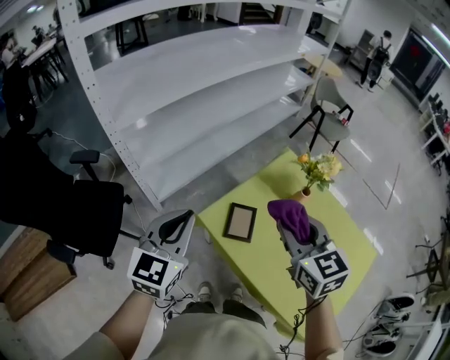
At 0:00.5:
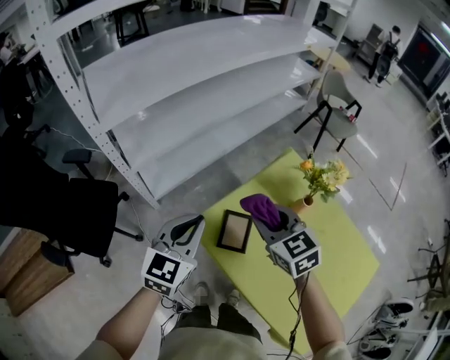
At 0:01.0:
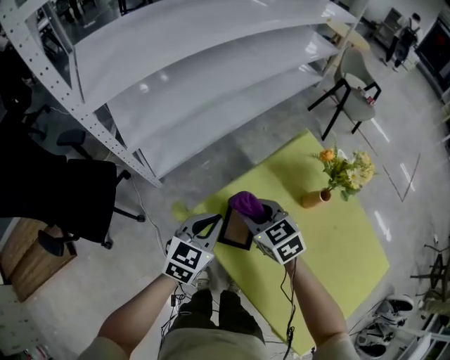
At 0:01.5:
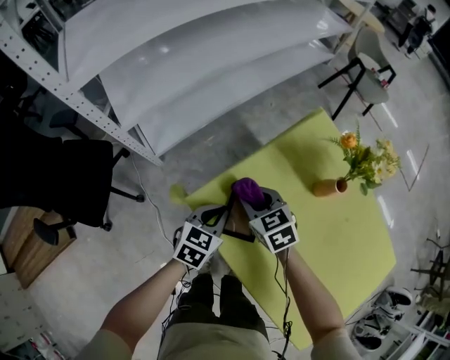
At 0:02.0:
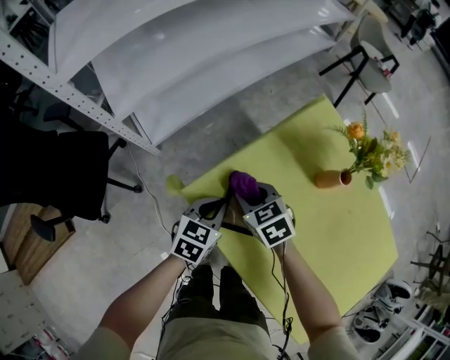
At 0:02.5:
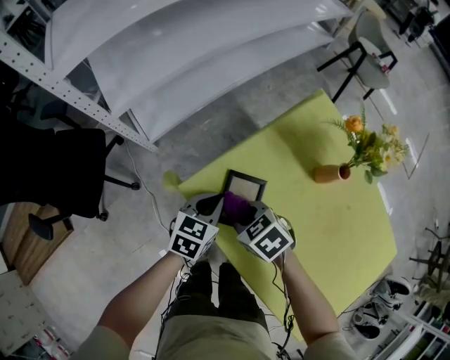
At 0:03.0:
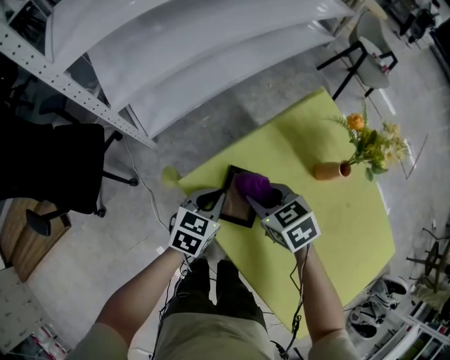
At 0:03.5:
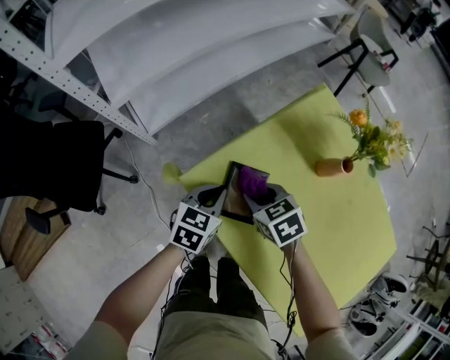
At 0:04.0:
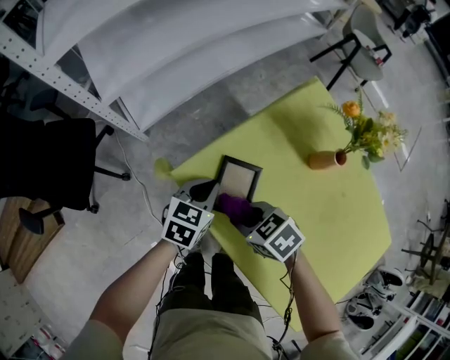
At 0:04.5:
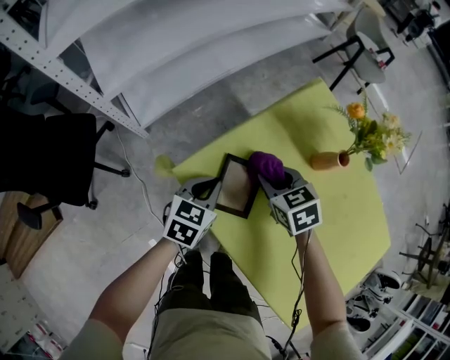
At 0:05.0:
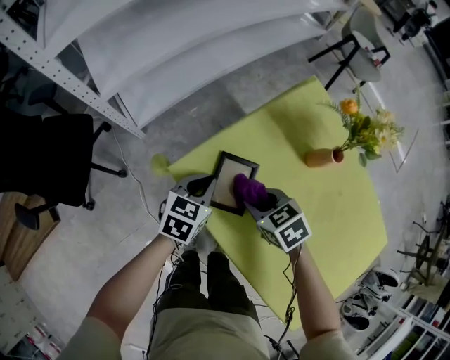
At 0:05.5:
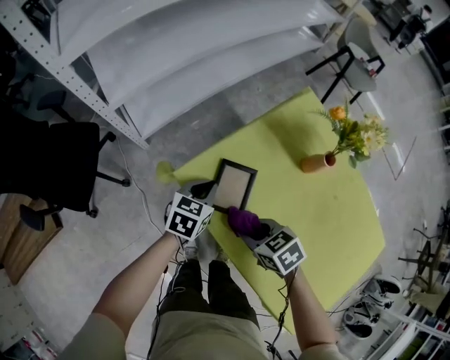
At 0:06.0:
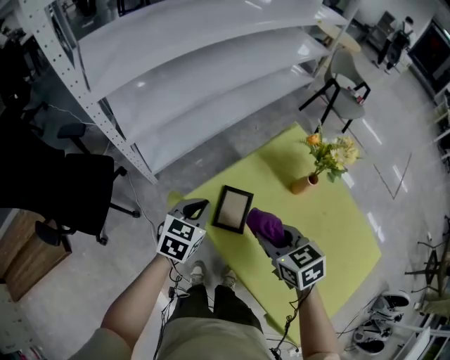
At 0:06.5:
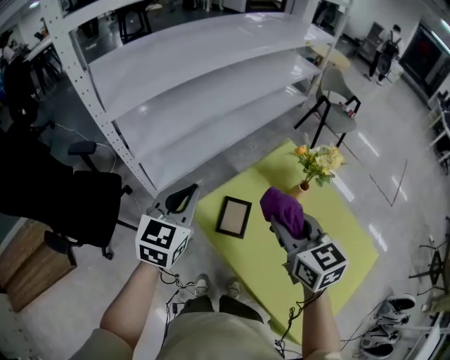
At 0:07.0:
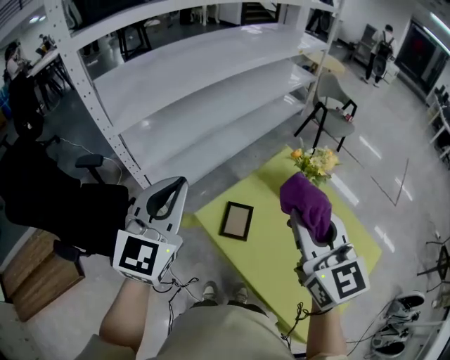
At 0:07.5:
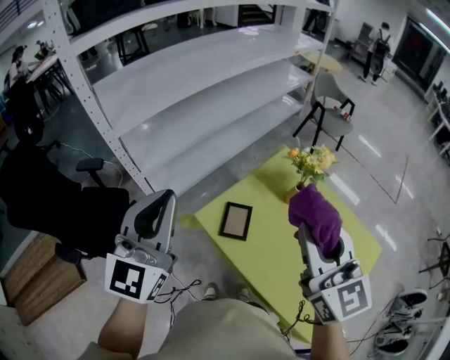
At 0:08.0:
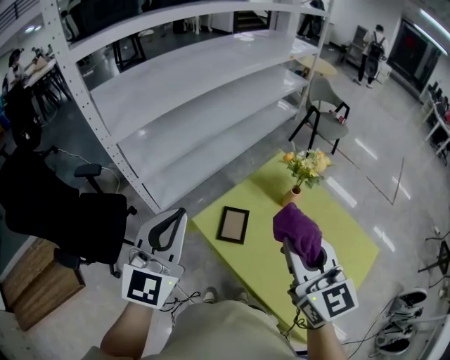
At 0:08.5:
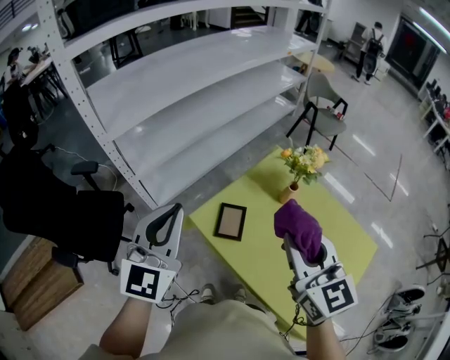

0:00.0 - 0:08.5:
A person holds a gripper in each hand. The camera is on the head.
0:00.0 - 0:02.0: The two grippers go some 35 cm downward. The right gripper swivels about 30 degrees. The left gripper rotates approximately 30 degrees.
0:02.0 - 0:04.0: The right gripper goes forward and backward, about 10 cm each way, reversing 2 times, and rotates approximately 20 degrees.
0:04.0 - 0:06.5: Both grippers move upward, about 30 cm. The right gripper tilts its fingers some 30 degrees upward, while the left gripper changes its angle by some 30 degrees.
0:06.5 - 0:08.5: The two grippers go approximately 15 cm upward and backward.

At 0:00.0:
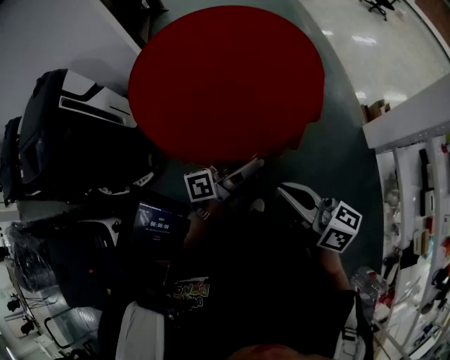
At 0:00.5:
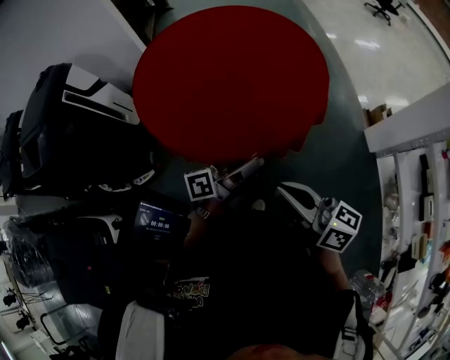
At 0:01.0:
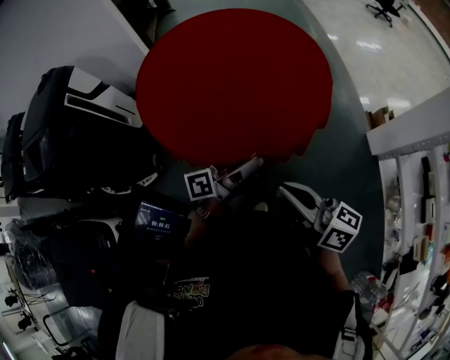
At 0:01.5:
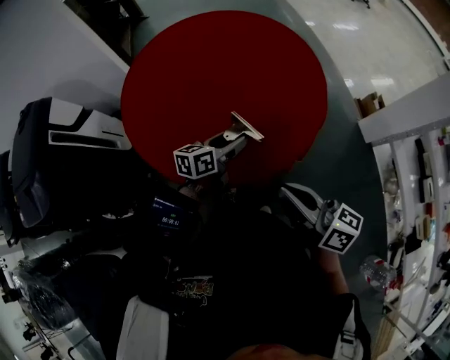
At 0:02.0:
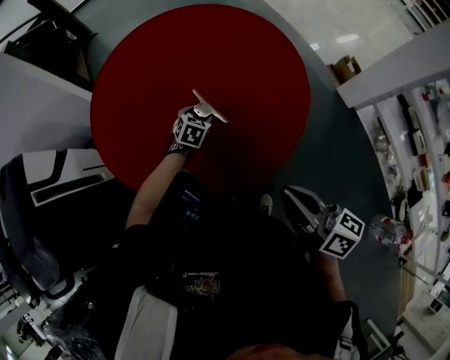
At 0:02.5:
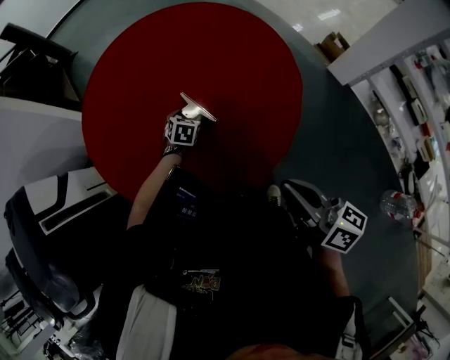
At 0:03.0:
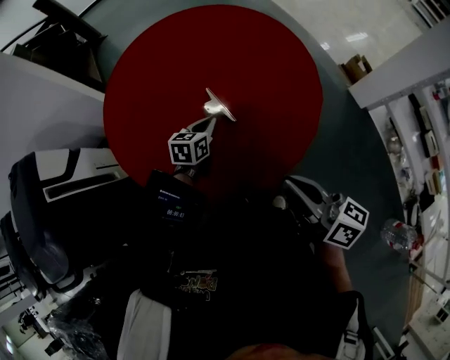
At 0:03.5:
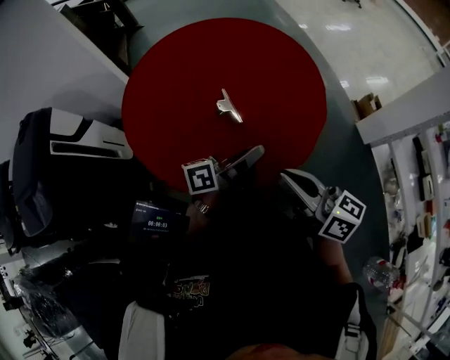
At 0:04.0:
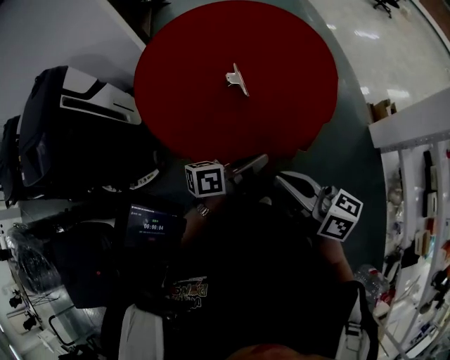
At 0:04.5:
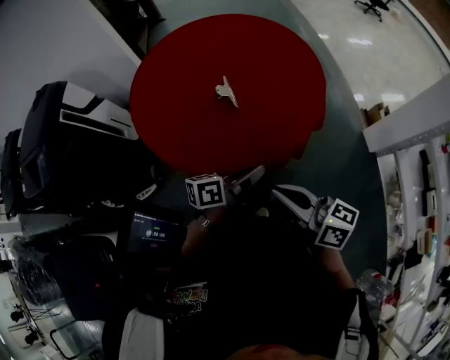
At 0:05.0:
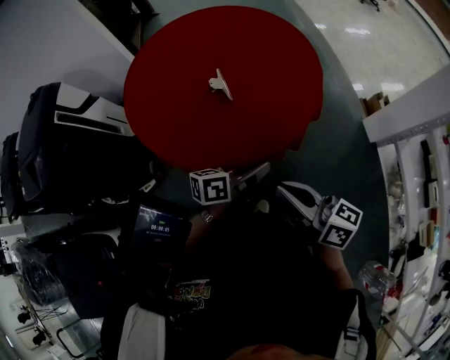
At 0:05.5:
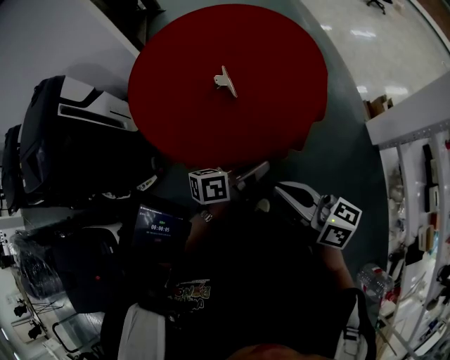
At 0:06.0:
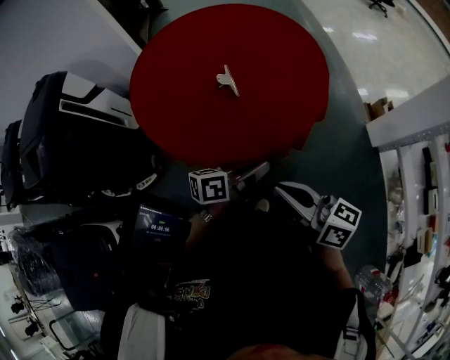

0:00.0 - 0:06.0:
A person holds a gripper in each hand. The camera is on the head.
0:00.0 - 0:02.0: The right gripper shifts roughly 15 cm forward and to the left, and swivels approximately 30 degrees. The left gripper goes roughly 40 cm forward, downward and to the left, and angles its fingers downward, by approximately 60 degrees.
0:02.0 - 0:04.0: The left gripper heads backward, upward and to the right, covering approximately 40 cm, tips its fingers upward by some 50 degrees, and closes, while the right gripper heads backward, covering roughly 5 cm, and rotates about 30 degrees.
0:04.0 - 0:06.0: The grippers move only a little.

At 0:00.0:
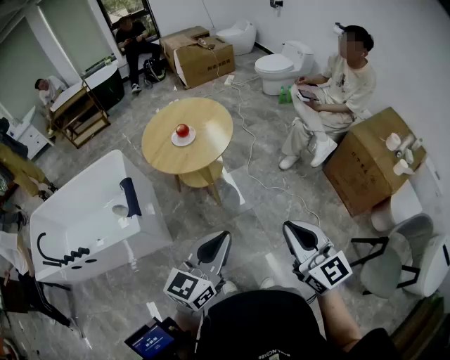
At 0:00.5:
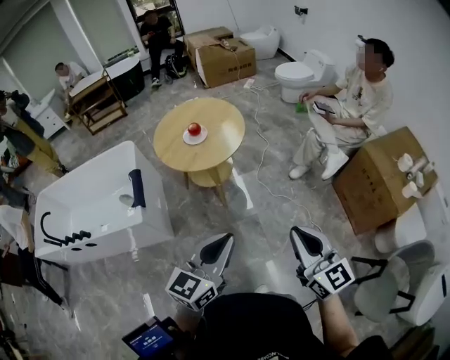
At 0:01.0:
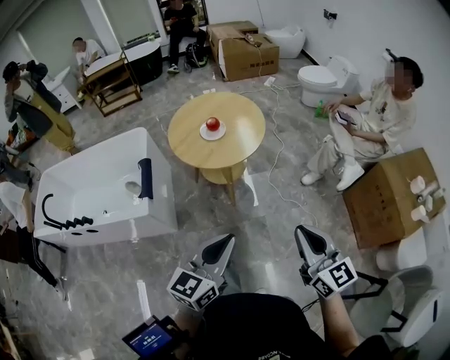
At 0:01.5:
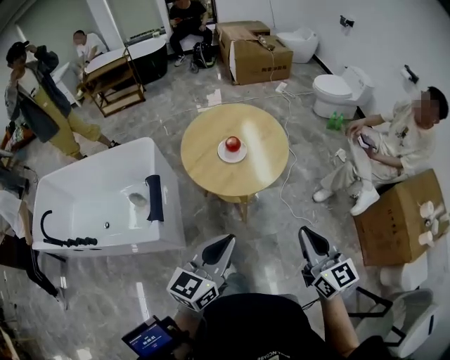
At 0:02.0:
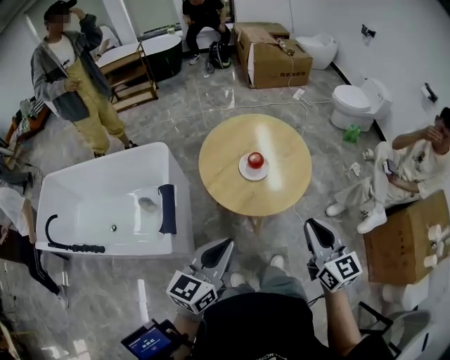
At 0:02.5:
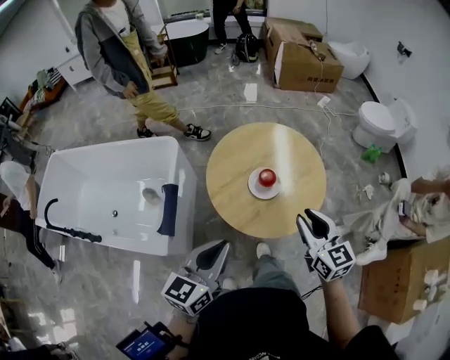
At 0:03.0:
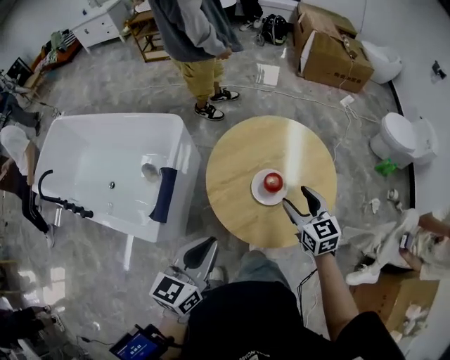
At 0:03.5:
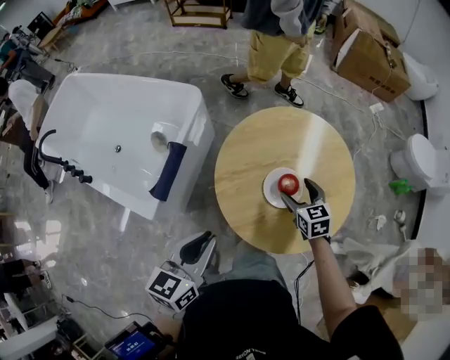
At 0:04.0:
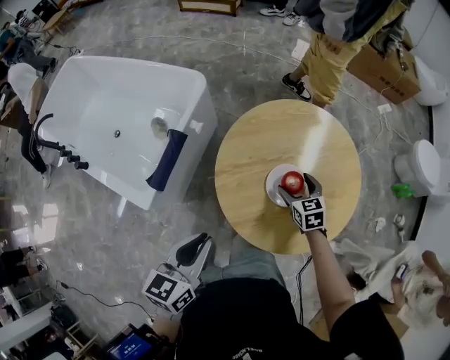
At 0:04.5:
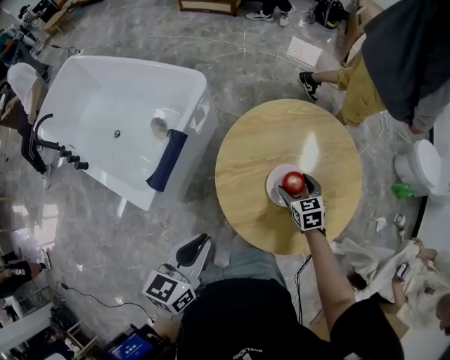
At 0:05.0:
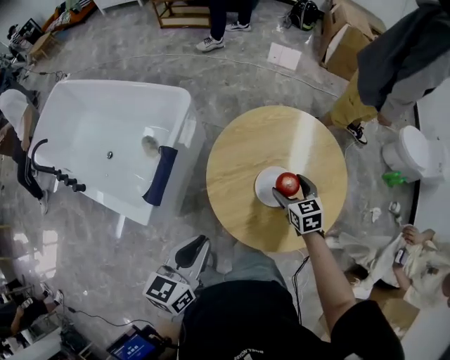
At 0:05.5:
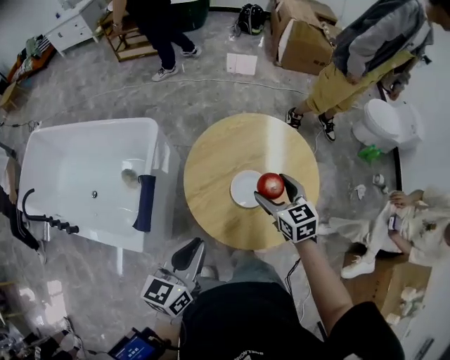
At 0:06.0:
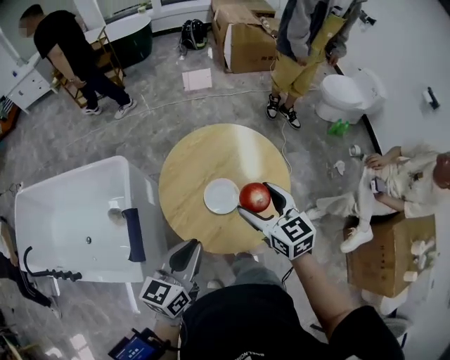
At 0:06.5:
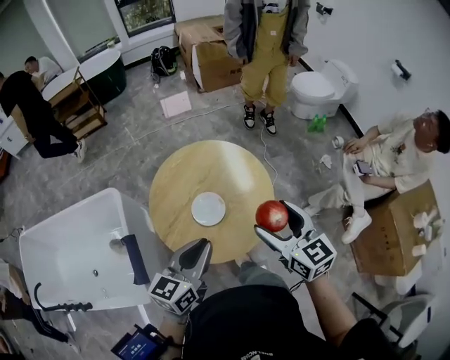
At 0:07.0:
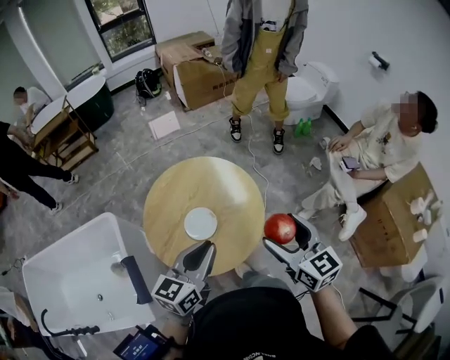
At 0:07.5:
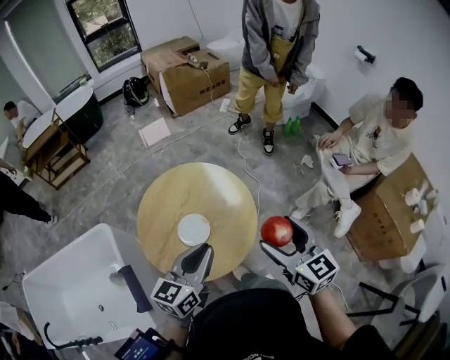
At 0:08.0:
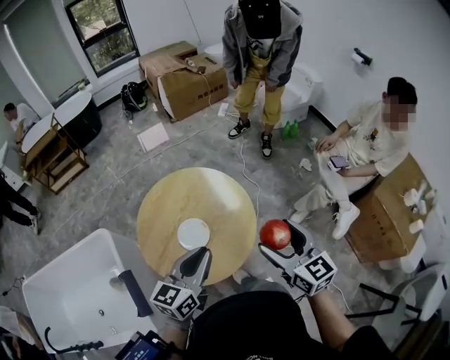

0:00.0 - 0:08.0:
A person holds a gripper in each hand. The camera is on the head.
0:00.0 - 0:02.0: The two grippers go some 35 cm forward and to the left.
0:02.0 - 0:04.0: The left gripper changes place by roughly 20 cm, and turns by roughly 40 degrees, while the right gripper shifts by about 50 cm, tilts its fingers approximately 40 degrees downward, and opens its fingers.
0:04.0 - 0:06.0: The right gripper travels upward by about 25 cm, and turns by some 30 degrees, while the left gripper goes some 15 cm to the right and upward, and swivels about 30 degrees.
0:06.0 - 0:08.0: The right gripper is displaced to the right and backward by approximately 20 cm, and changes its angle by approximately 30 degrees; the left gripper moves to the right and forward, about 15 cm, and turns by about 20 degrees.

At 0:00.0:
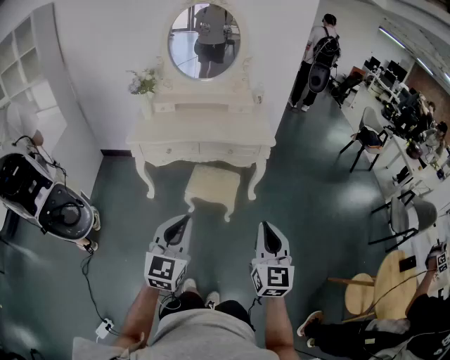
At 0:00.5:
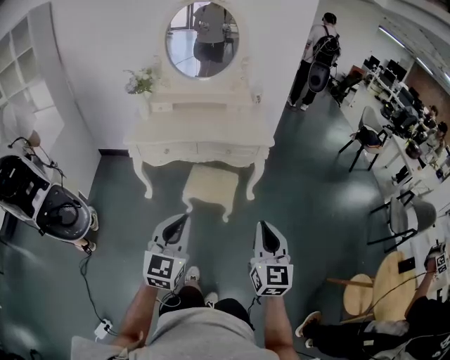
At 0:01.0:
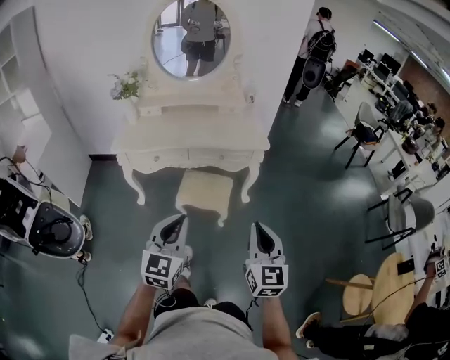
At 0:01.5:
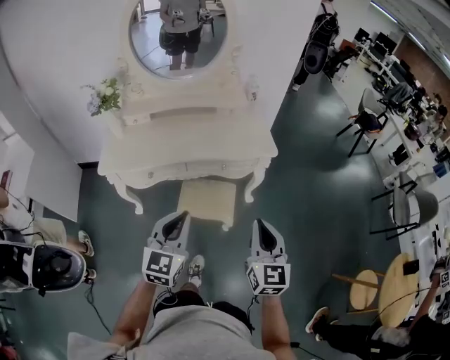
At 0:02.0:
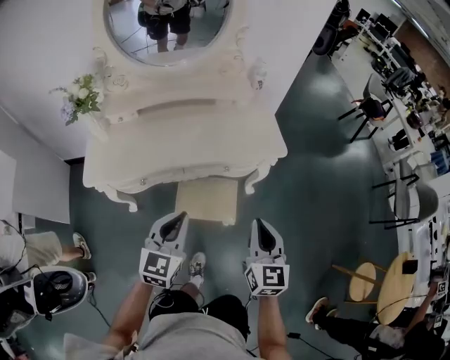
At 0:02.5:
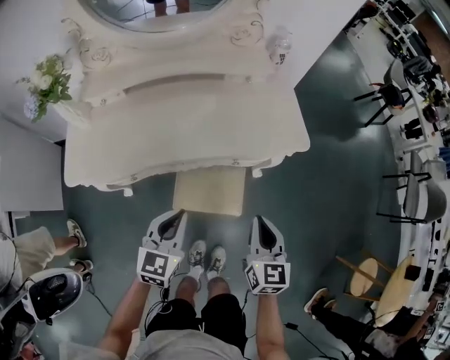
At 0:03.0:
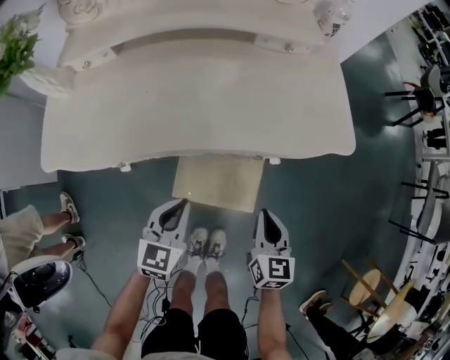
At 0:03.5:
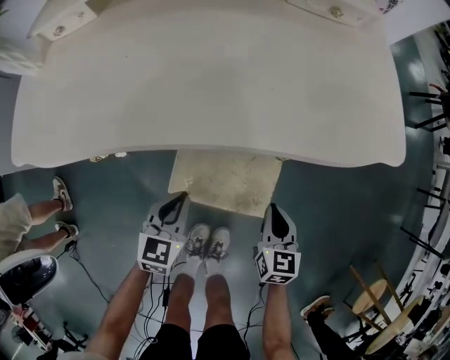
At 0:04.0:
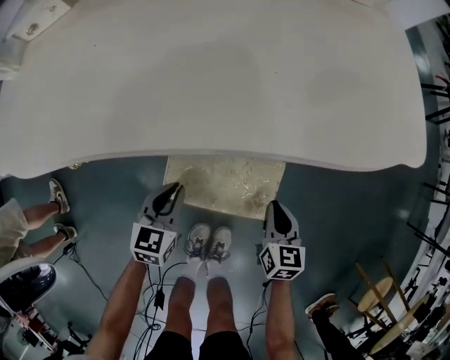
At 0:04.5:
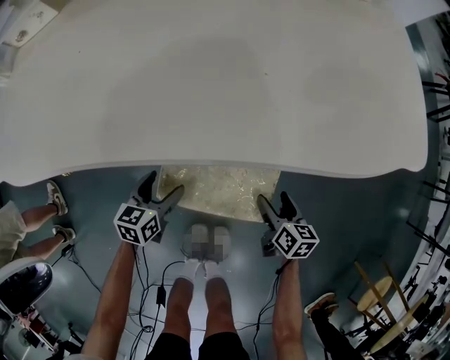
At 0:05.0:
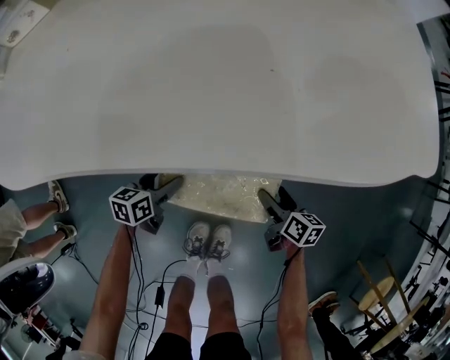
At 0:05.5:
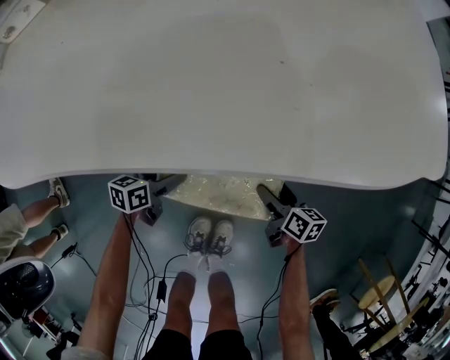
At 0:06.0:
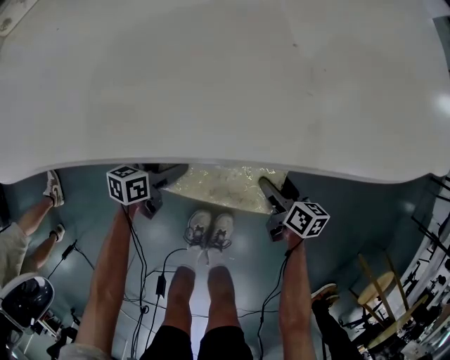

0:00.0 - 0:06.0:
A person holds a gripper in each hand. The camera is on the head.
0:00.0 - 0:02.0: Both grippers travel together forward, some 40 cm.
0:02.0 - 0:04.0: Both grippers move downward, some 50 cm. The right gripper turns by roughly 30 degrees. Meanwhile the left gripper rotates about 20 degrees.
0:04.0 - 0:06.0: Both grippers travel together downward, some 10 cm. The right gripper changes its angle by approximately 30 degrees, and opens; the left gripper swivels approximately 40 degrees, and opens its fingers.
